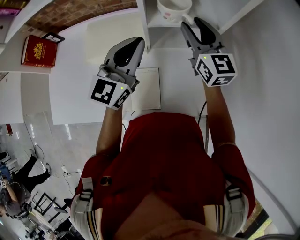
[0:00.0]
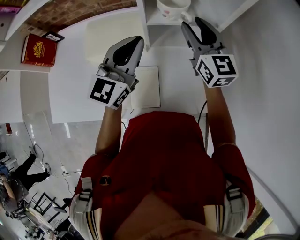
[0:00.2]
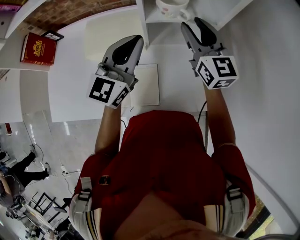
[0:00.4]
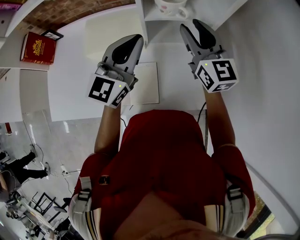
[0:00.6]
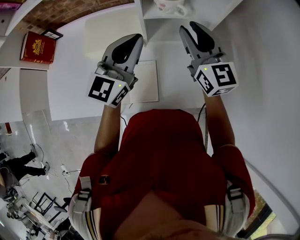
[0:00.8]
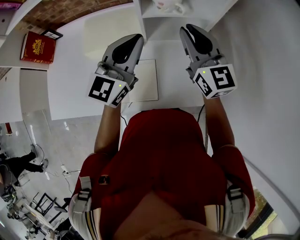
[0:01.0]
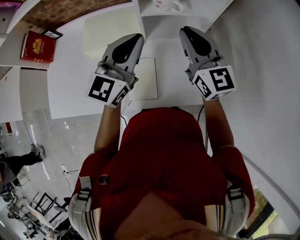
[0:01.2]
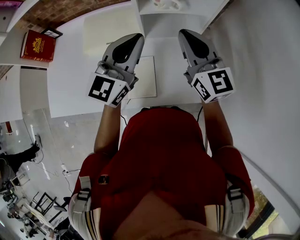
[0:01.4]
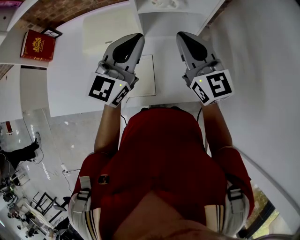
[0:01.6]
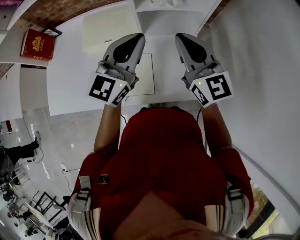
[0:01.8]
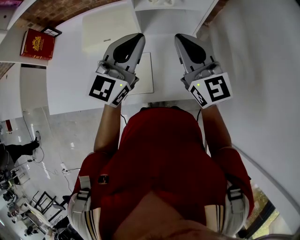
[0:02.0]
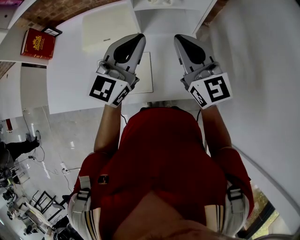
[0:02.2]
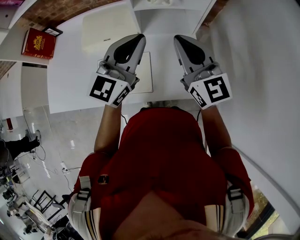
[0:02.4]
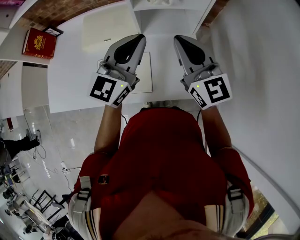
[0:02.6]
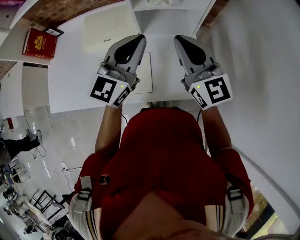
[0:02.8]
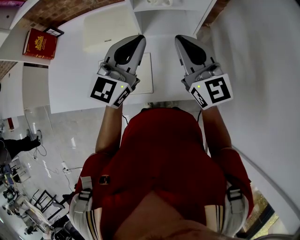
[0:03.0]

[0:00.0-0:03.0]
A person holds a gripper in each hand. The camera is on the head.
0:00.0 to 0:01.6: The left gripper moves backward, approximately 5 cm. Meanwhile the right gripper shifts roughly 15 cm backward, and closes.
0:01.6 to 0:03.0: The grippers make only small movements.

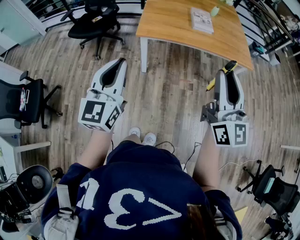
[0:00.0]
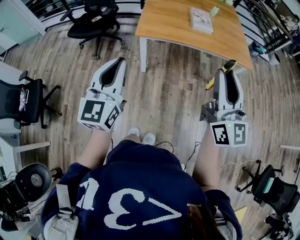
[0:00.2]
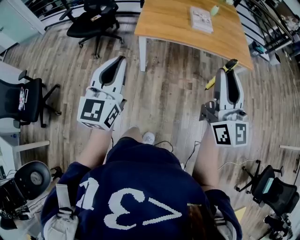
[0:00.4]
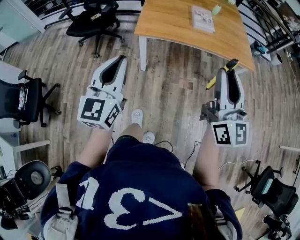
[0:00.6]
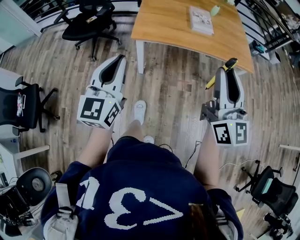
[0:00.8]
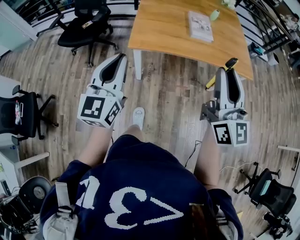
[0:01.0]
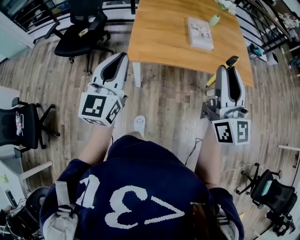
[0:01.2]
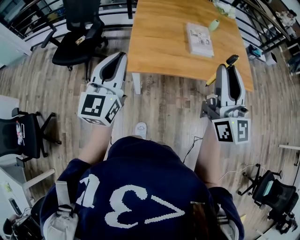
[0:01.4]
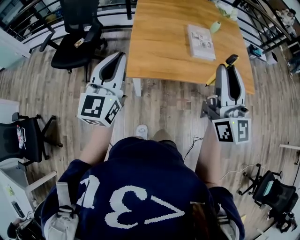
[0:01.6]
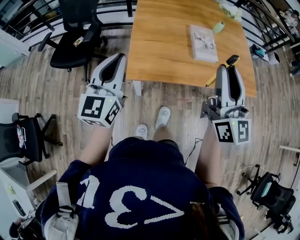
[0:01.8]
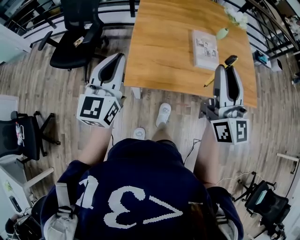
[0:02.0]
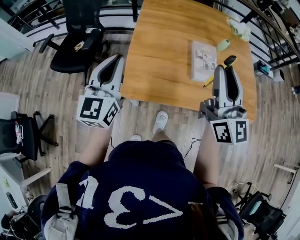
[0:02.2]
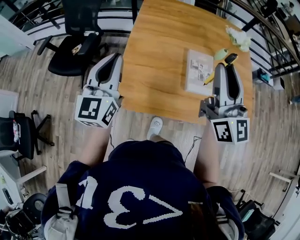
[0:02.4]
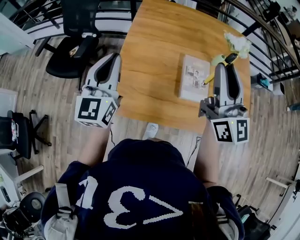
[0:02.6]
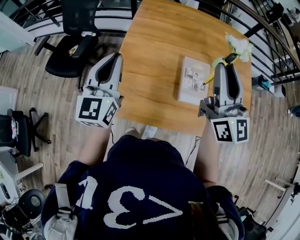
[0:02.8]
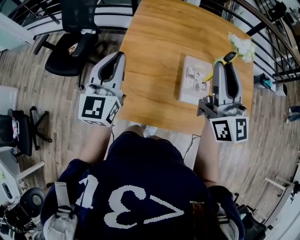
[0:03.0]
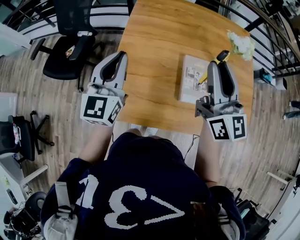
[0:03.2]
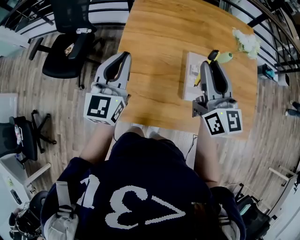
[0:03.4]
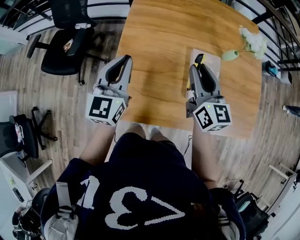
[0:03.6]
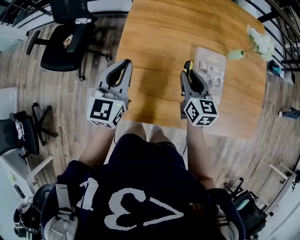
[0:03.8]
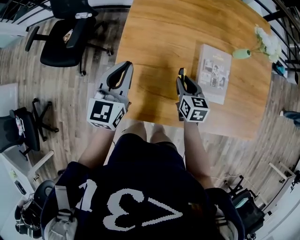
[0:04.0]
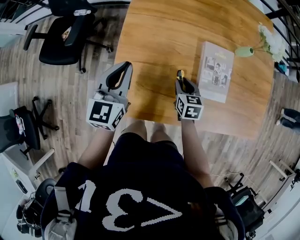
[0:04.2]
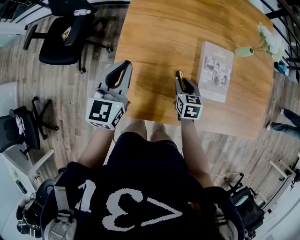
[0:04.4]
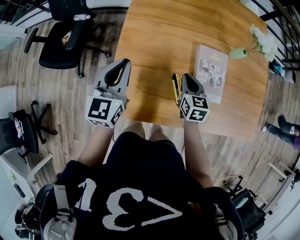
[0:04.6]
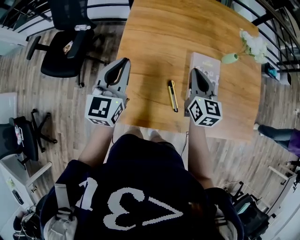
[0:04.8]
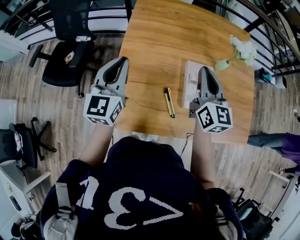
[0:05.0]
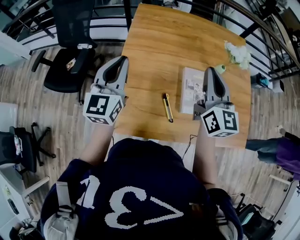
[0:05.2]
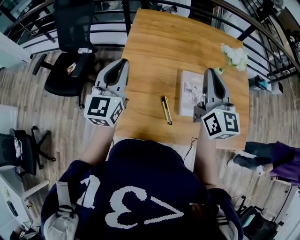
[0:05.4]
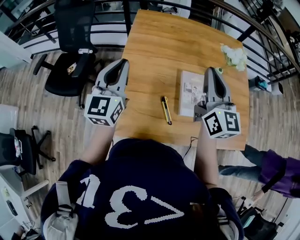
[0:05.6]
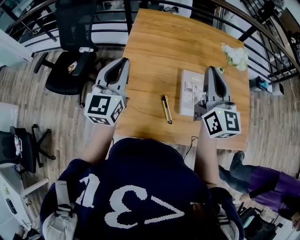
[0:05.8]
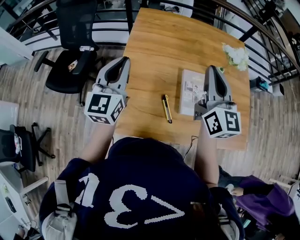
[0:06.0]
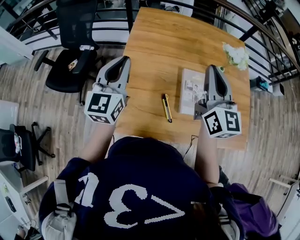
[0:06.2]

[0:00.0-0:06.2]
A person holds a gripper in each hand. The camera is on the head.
0:00.0 to 0:01.6: Both grippers move forward, some 30 cm.
0:01.6 to 0:03.2: Both grippers travel together forward, some 30 cm.
0:03.2 to 0:04.6: The left gripper moves downward, some 10 cm. The right gripper heads downward, covering about 35 cm, and points its fingers about 40 degrees further downward.
0:04.6 to 0:06.2: The left gripper moves upward, about 15 cm, while the right gripper shifts roughly 35 cm upward, and angles its fingers upward, by approximately 40 degrees.

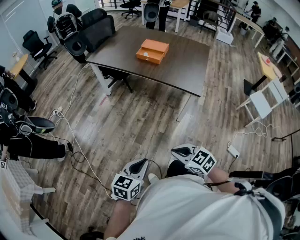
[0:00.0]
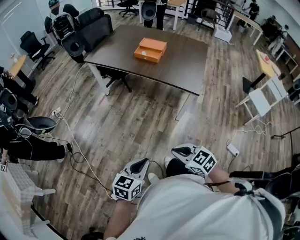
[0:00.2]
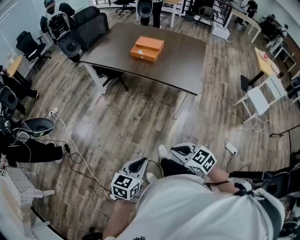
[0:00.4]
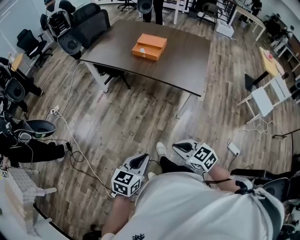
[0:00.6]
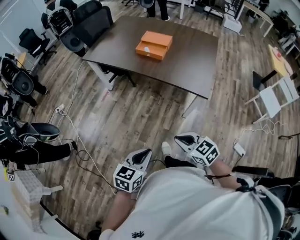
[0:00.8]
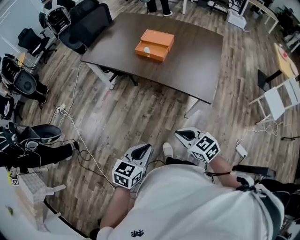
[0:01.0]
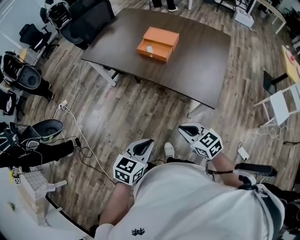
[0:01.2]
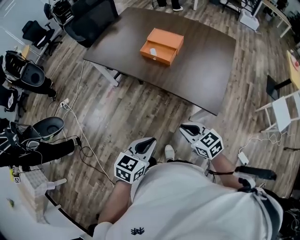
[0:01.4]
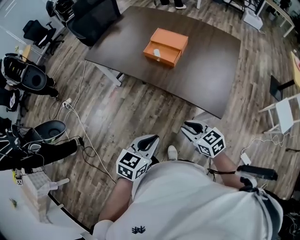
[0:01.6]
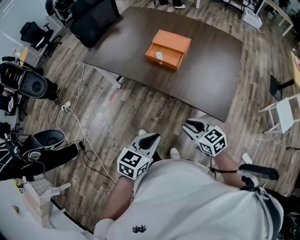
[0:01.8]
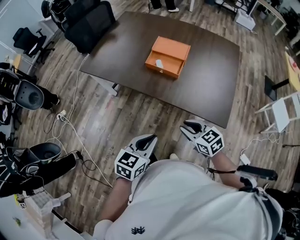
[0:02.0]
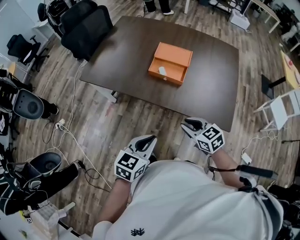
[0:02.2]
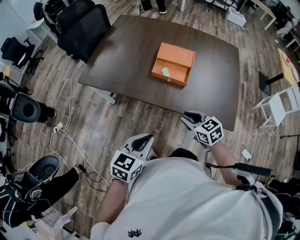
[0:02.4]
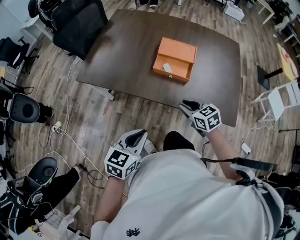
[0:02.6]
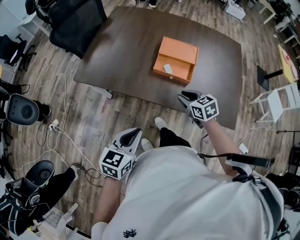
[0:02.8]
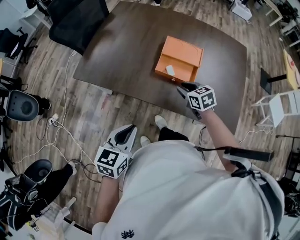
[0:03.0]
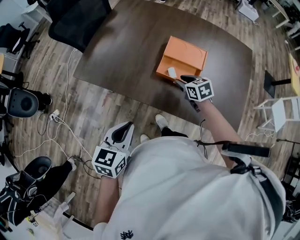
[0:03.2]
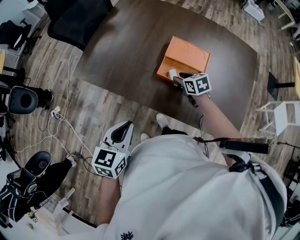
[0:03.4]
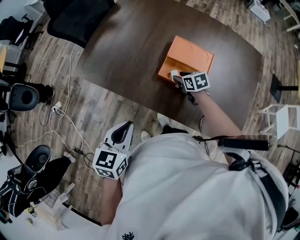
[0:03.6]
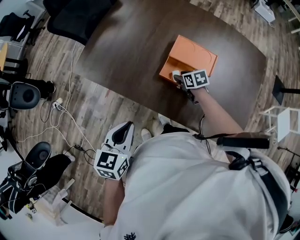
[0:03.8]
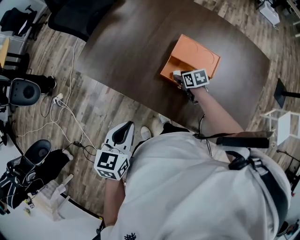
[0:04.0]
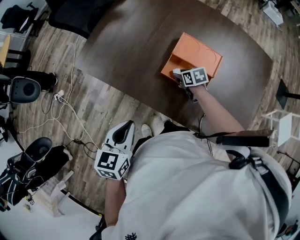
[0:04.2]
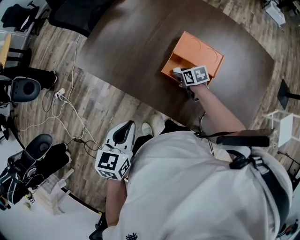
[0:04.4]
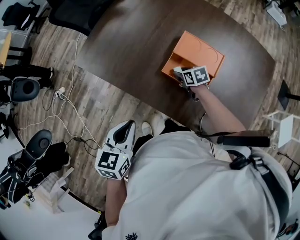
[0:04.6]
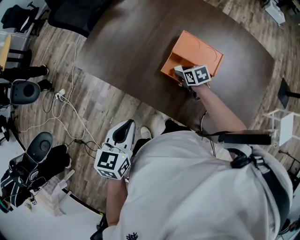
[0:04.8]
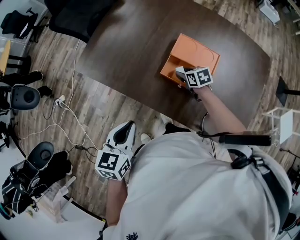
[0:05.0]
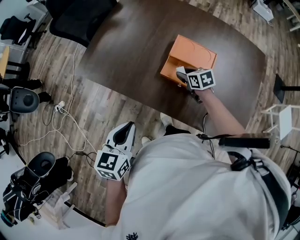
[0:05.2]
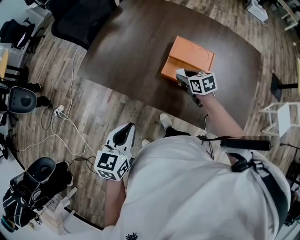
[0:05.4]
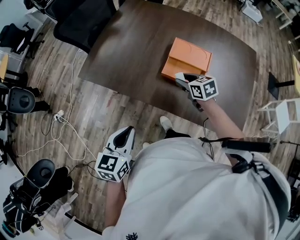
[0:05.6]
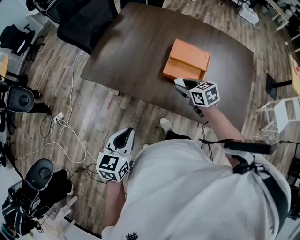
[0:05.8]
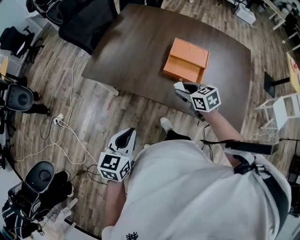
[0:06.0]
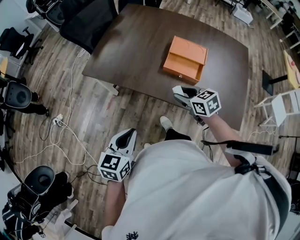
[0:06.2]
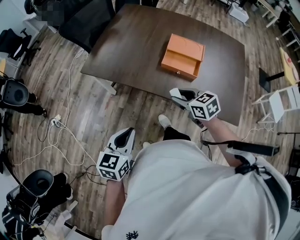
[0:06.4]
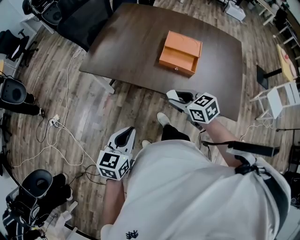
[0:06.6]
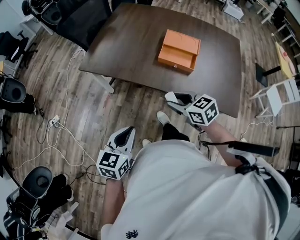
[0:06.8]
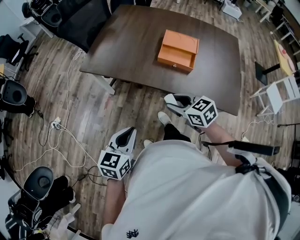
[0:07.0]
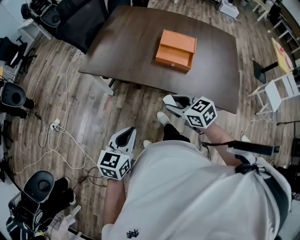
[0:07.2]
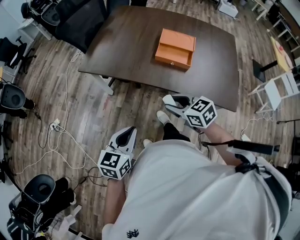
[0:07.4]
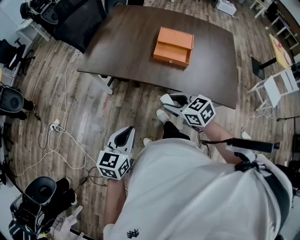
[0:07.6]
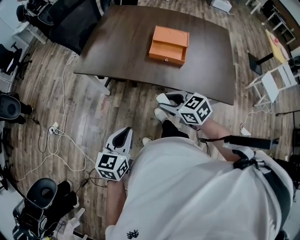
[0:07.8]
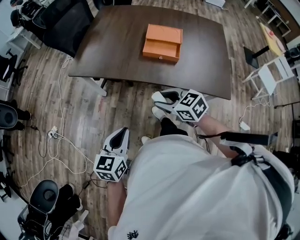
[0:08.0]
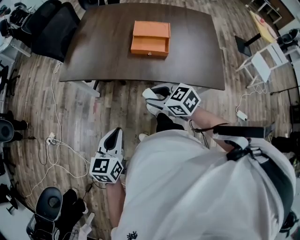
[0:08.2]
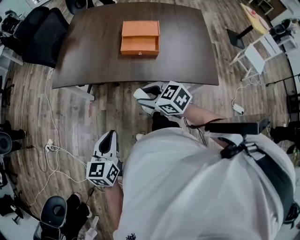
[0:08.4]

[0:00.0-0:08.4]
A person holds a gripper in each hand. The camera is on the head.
0:00.0 to 0:01.4: The two grippers go roughly 35 cm forward.
0:01.4 to 0:02.8: The two grippers go approximately 40 cm forward and to the left. The right gripper turns by approximately 20 degrees, and opens its fingers.
0:02.8 to 0:04.2: The left gripper shifts roughly 15 cm forward, and rotates some 20 degrees. The right gripper shifts approximately 25 cm forward and downward, rotates roughly 20 degrees, and opens its fingers.
0:04.2 to 0:05.6: The left gripper heads to the left and backward, covering approximately 10 cm. The right gripper goes roughly 15 cm upward and backward.
0:05.6 to 0:07.0: The right gripper is displaced backward and to the left by roughly 30 cm, while the left gripper heads backward, covering approximately 15 cm.
0:07.0 to 0:08.4: The grippers stay close to where they were, moving slightly.

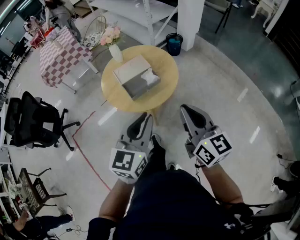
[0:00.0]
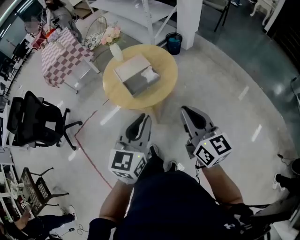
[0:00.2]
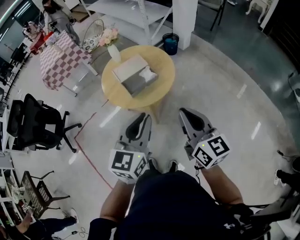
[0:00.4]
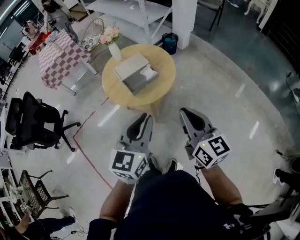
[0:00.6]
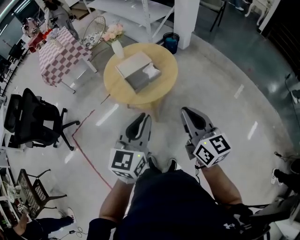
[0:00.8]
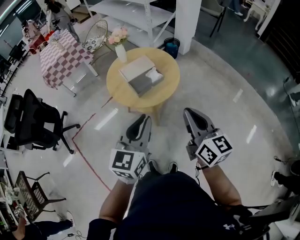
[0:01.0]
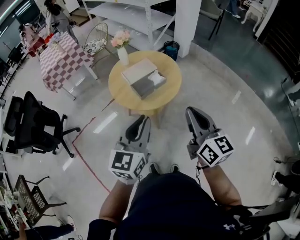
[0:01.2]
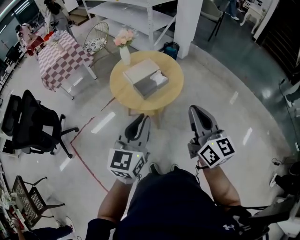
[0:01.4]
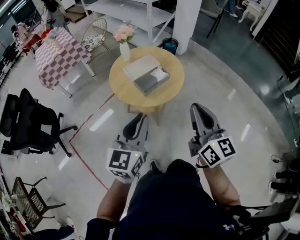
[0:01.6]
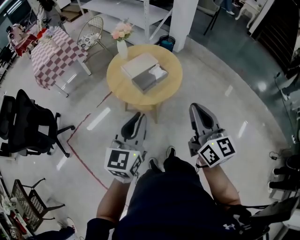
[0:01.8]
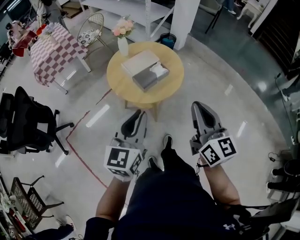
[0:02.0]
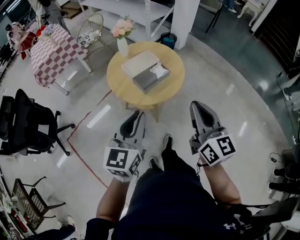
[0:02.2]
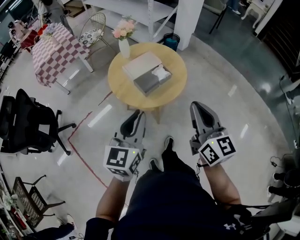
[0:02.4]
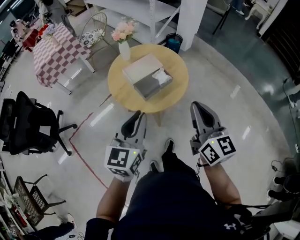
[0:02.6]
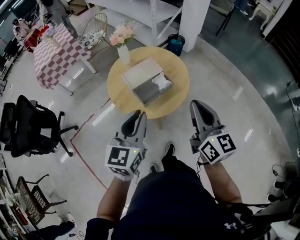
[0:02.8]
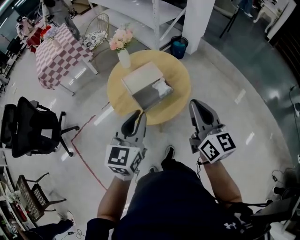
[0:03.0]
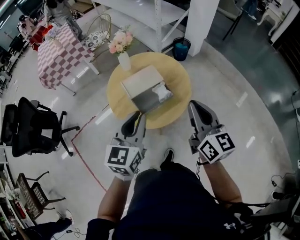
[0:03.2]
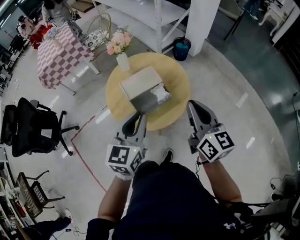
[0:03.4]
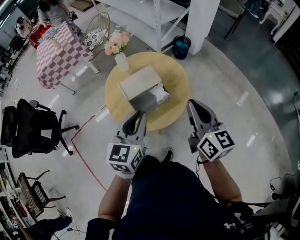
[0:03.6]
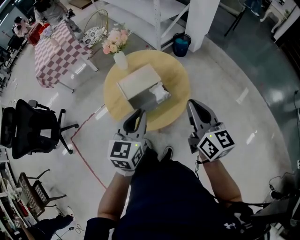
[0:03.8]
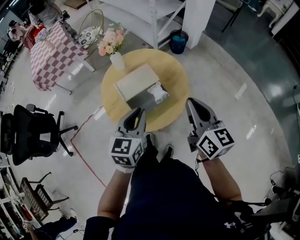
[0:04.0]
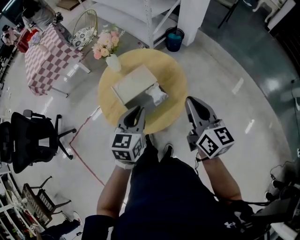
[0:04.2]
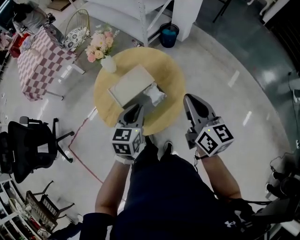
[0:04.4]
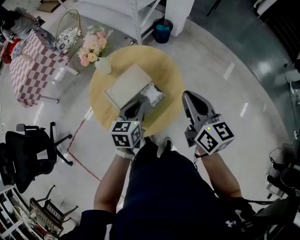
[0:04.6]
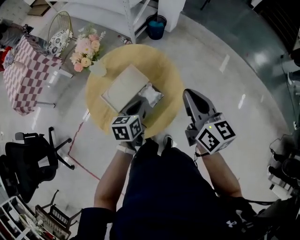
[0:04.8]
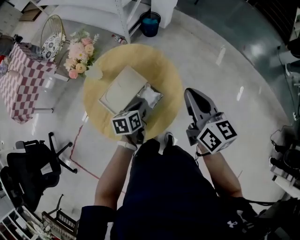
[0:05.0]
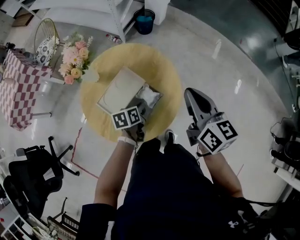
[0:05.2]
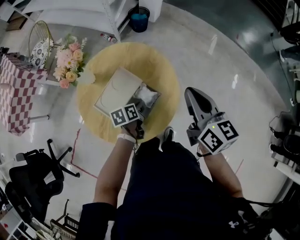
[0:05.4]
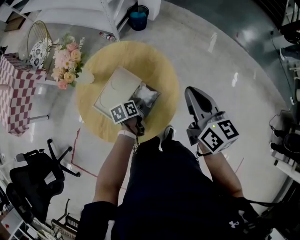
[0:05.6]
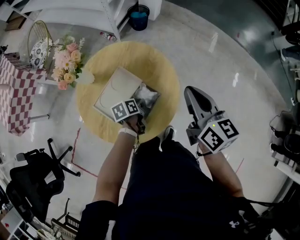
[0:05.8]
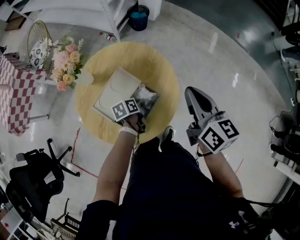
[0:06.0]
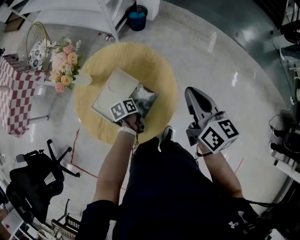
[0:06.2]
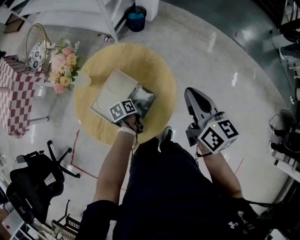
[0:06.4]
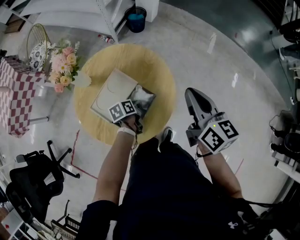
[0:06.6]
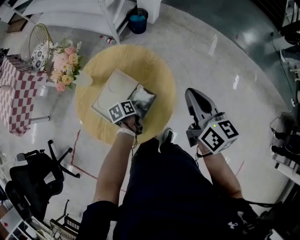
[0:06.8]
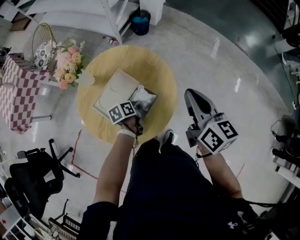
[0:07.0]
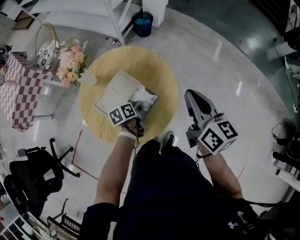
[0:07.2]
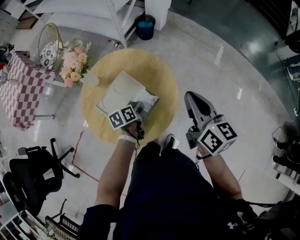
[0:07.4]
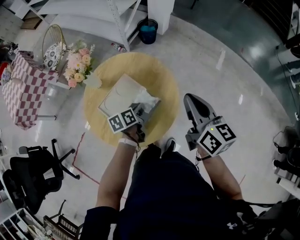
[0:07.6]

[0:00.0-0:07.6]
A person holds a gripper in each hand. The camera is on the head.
0:00.0 to 0:01.6: The right gripper shifts about 15 cm to the left and backward, while the left gripper is displaced to the left by about 15 cm.
0:01.6 to 0:03.0: The two grippers go about 20 cm forward.
0:03.0 to 0:04.6: The right gripper shifts approximately 15 cm forward. Meanwhile the left gripper shifts roughly 25 cm forward and downward, and turns by some 30 degrees.
0:04.6 to 0:06.0: The left gripper goes roughly 20 cm downward, and swivels about 40 degrees. Meanwhile the right gripper heads forward, covering approximately 5 cm.
0:06.0 to 0:07.6: The left gripper moves upward, some 10 cm.
